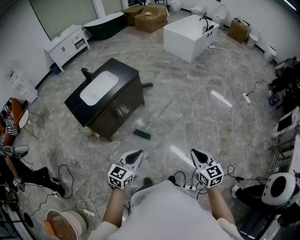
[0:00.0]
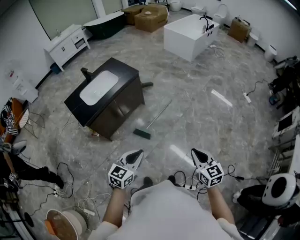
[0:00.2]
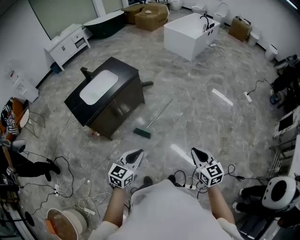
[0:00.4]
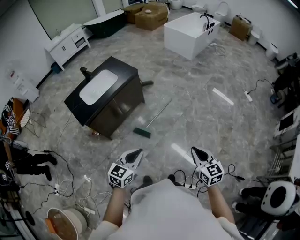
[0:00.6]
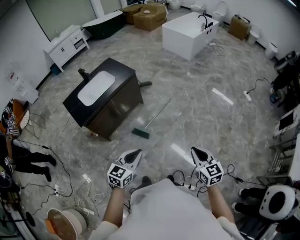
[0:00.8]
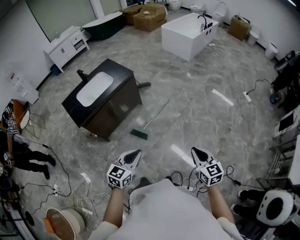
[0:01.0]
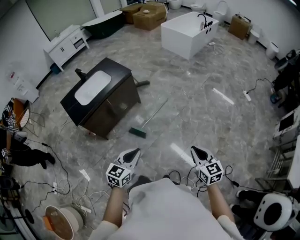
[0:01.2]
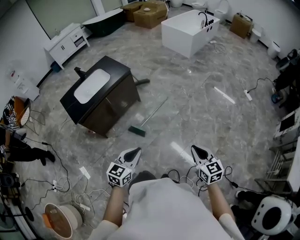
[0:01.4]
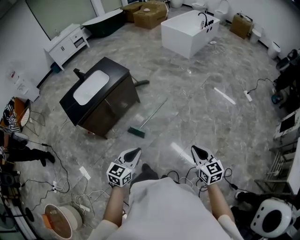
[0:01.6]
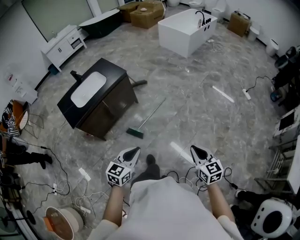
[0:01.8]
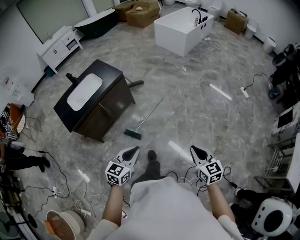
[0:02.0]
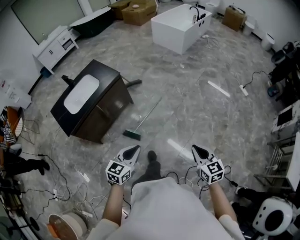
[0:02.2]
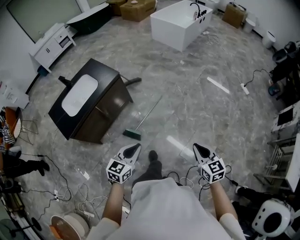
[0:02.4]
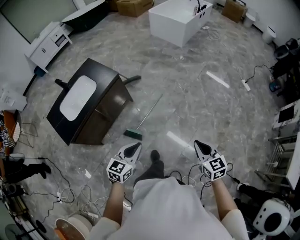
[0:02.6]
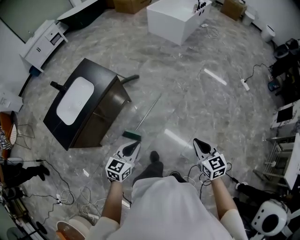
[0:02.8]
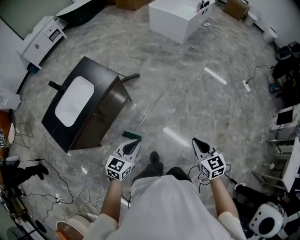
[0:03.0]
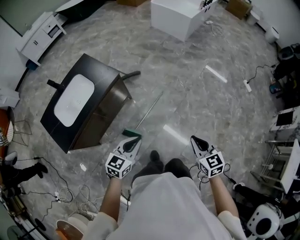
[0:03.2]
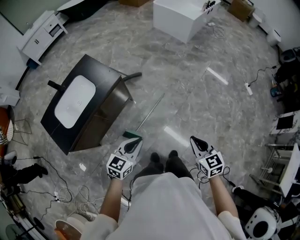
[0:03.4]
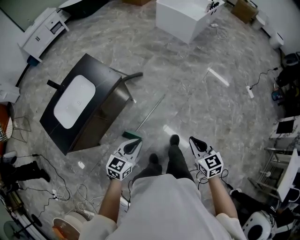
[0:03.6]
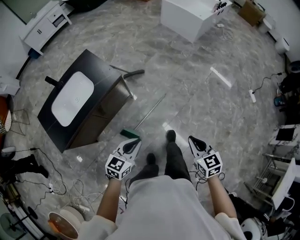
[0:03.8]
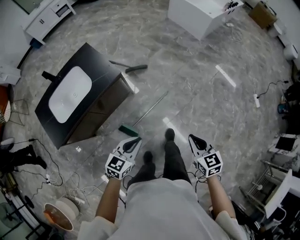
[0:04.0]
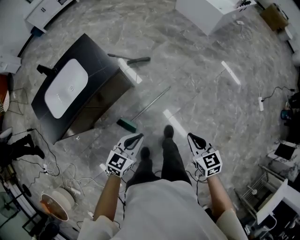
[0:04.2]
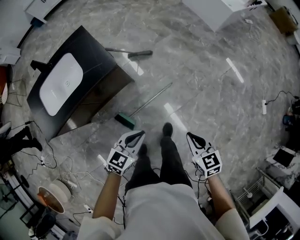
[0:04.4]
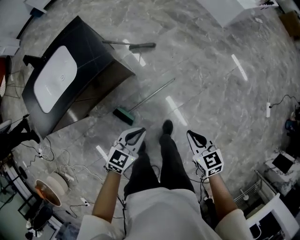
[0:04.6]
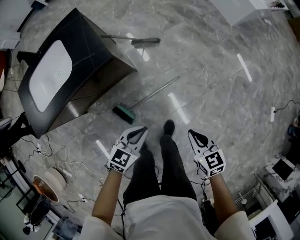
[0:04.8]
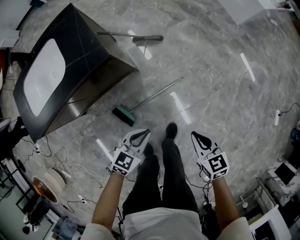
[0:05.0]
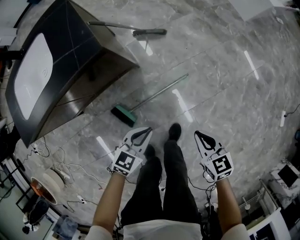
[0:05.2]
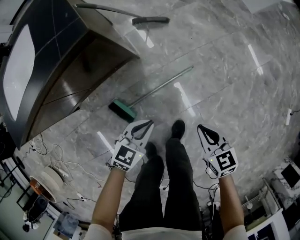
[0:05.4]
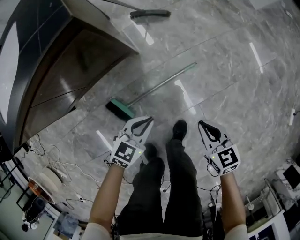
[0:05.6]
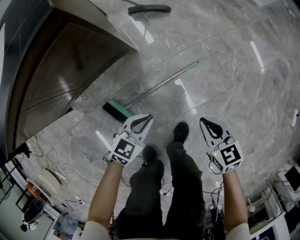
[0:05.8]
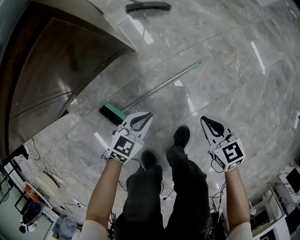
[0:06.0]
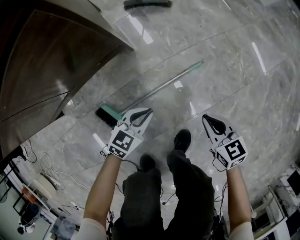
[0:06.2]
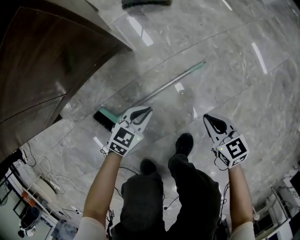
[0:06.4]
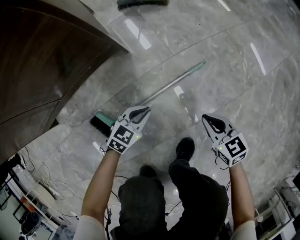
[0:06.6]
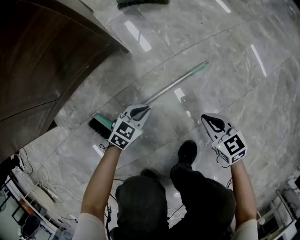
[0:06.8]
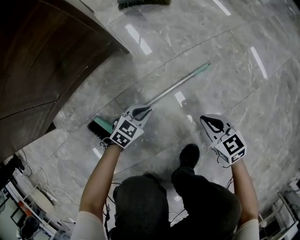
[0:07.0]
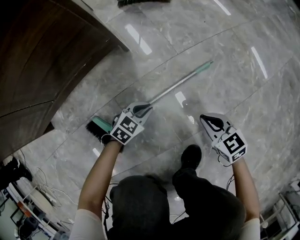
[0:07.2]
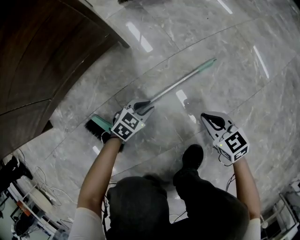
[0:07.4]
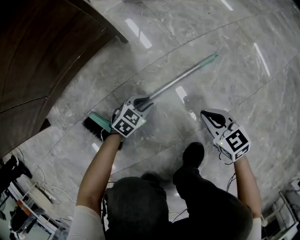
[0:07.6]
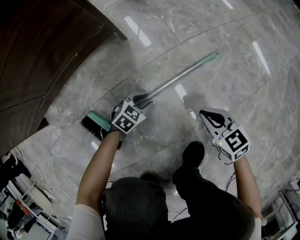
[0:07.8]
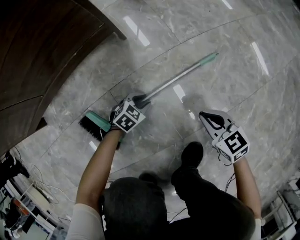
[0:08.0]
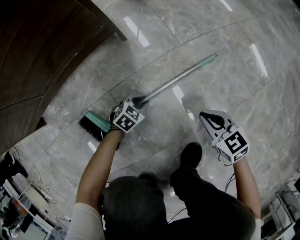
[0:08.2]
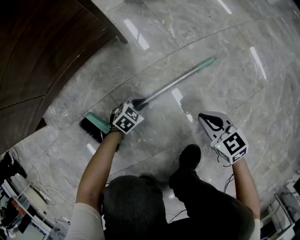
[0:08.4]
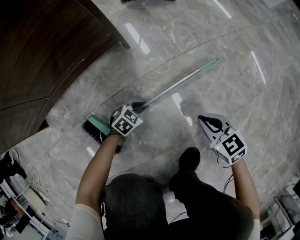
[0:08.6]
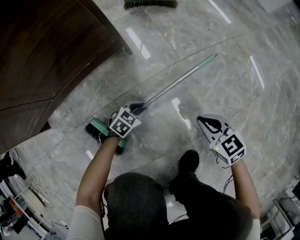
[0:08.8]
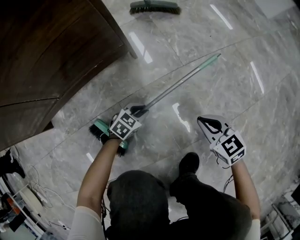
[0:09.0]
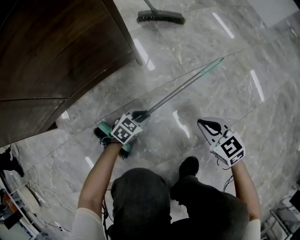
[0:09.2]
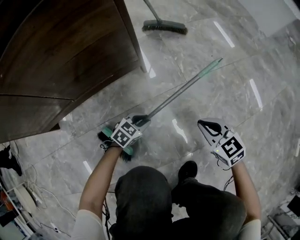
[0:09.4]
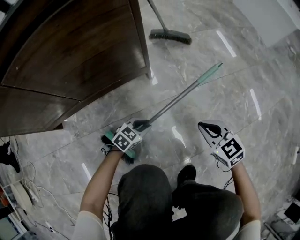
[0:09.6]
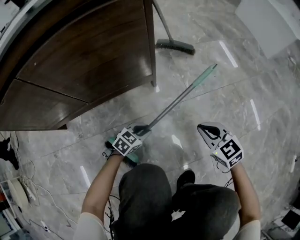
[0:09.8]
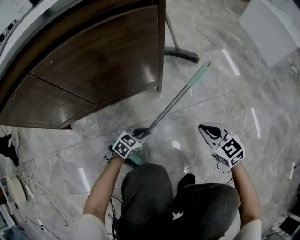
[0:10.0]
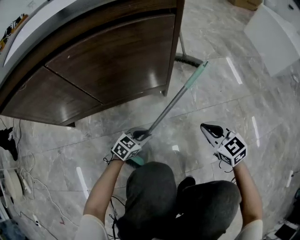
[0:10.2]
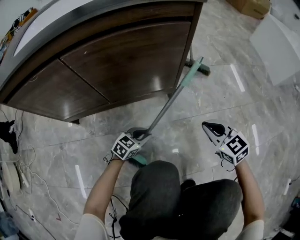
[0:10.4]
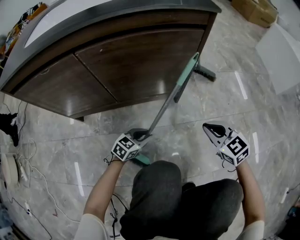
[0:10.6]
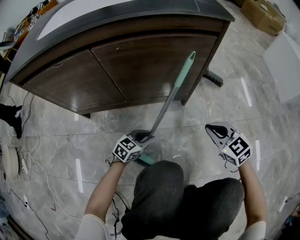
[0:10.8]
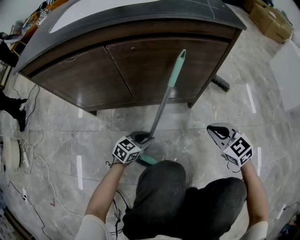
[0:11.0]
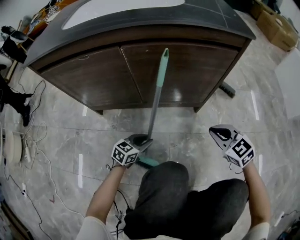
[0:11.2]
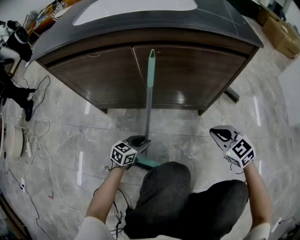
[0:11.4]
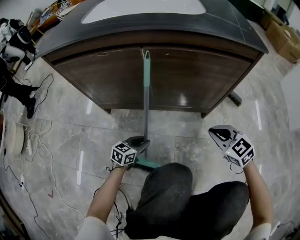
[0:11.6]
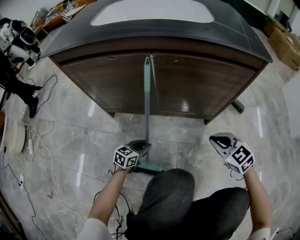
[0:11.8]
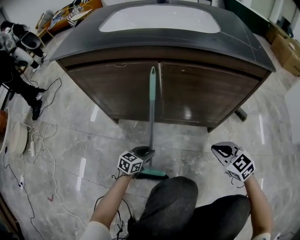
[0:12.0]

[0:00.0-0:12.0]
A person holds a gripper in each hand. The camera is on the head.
0:00.0 to 0:01.6: Both grippers move to the right, some 15 cm.
0:01.6 to 0:03.0: Both grippers travel together forward, some 35 cm.
0:03.0 to 0:04.4: Both grippers travel together forward and downward, about 35 cm. The right gripper rotates some 20 degrees.
0:04.4 to 0:06.0: The two grippers go roughly 60 cm downward.
0:06.0 to 0:07.6: Both grippers travel together downward, some 30 cm.
0:07.6 to 0:09.0: The left gripper moves approximately 5 cm. Meanwhile the right gripper moves upward, roughly 5 cm.
0:09.0 to 0:10.4: Both grippers move upward and to the left, roughly 25 cm. The right gripper changes its angle by roughly 20 degrees; the left gripper changes its angle by about 20 degrees.
0:10.4 to 0:12.0: Both grippers move to the left, about 20 cm. The right gripper swivels some 20 degrees. Meanwhile the left gripper swivels about 30 degrees.

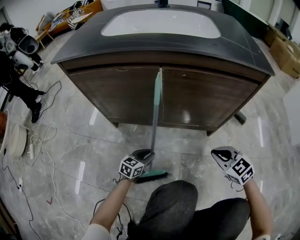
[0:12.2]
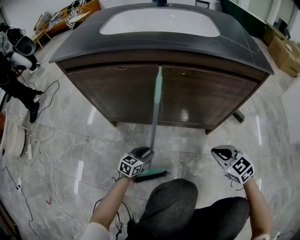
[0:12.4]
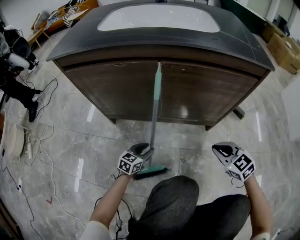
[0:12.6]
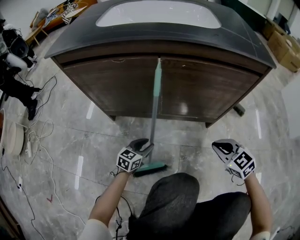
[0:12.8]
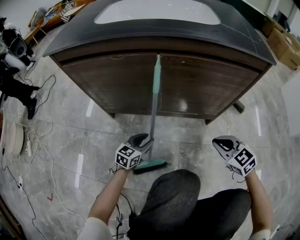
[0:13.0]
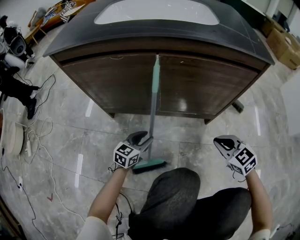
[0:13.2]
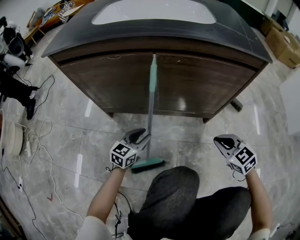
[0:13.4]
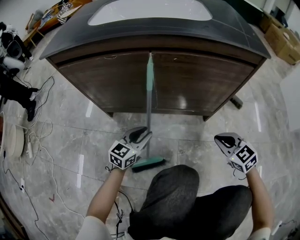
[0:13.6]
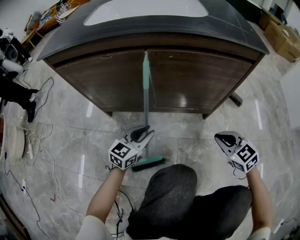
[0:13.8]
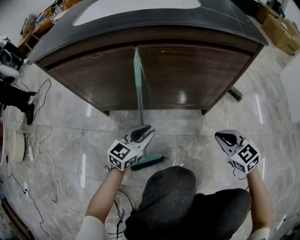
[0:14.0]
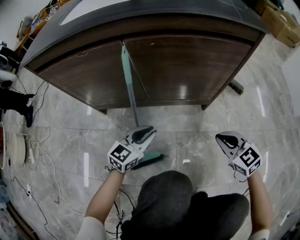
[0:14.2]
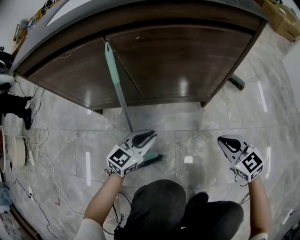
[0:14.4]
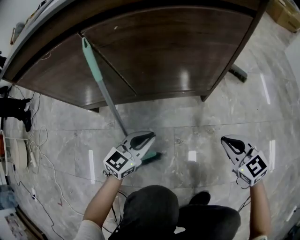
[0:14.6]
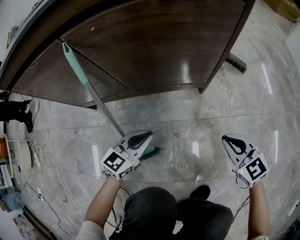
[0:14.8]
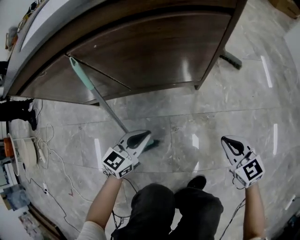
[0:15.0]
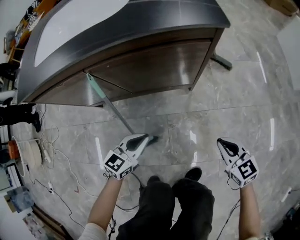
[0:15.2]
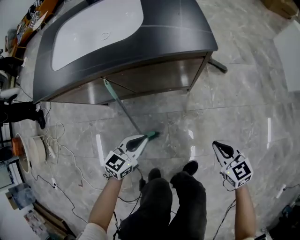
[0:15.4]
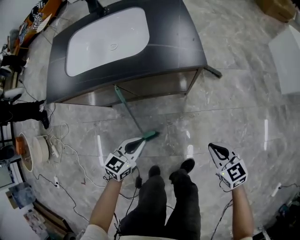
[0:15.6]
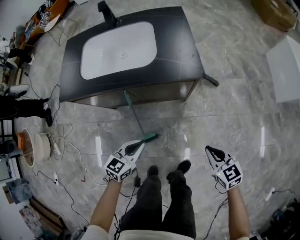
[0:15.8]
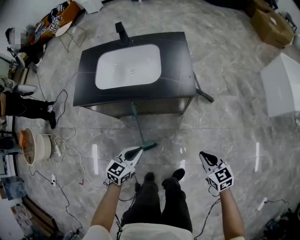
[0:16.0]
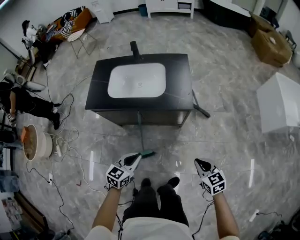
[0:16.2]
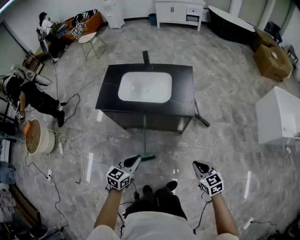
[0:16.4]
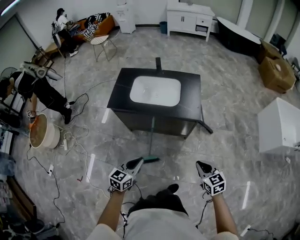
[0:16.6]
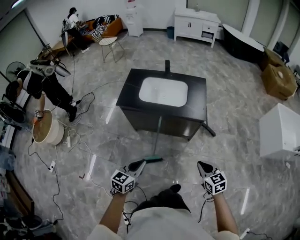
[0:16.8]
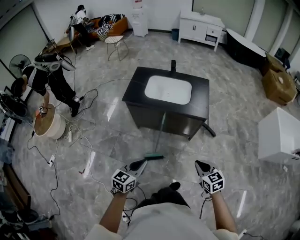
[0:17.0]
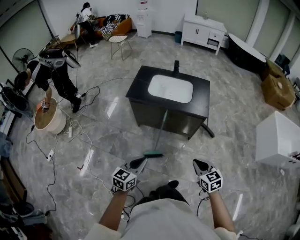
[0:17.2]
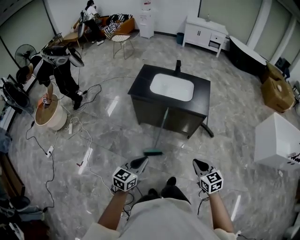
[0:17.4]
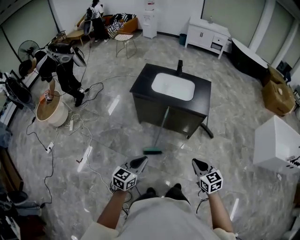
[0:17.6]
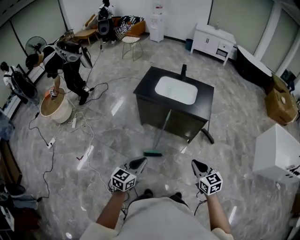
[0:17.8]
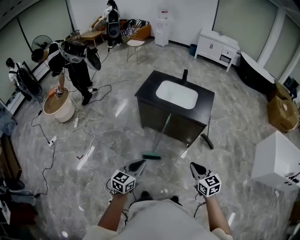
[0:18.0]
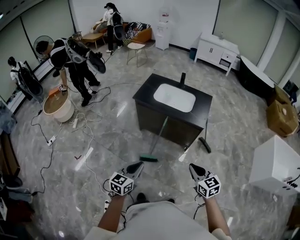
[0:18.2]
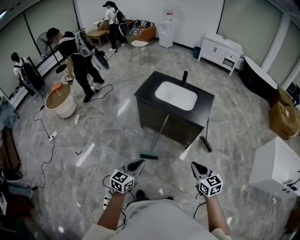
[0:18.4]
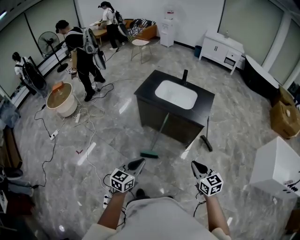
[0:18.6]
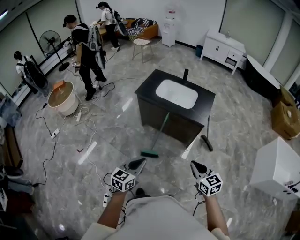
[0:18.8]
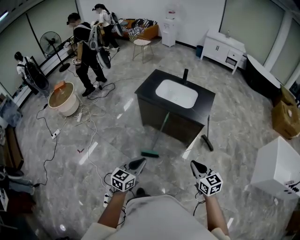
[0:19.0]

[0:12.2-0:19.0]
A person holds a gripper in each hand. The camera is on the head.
0:12.2 to 0:13.6: The left gripper is displaced upward by approximately 15 cm.
0:13.6 to 0:15.0: The grippers both shift to the right by roughly 15 cm. The right gripper changes its angle by approximately 20 degrees, while the left gripper closes its fingers.
0:15.0 to 0:16.2: The two grippers go some 60 cm upward.
0:16.2 to 0:17.6: Both grippers move backward, upward and to the left, roughly 40 cm.
0:17.6 to 0:19.0: Both grippers move to the right, some 10 cm.

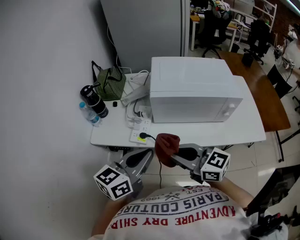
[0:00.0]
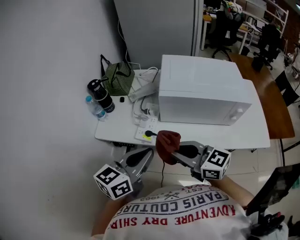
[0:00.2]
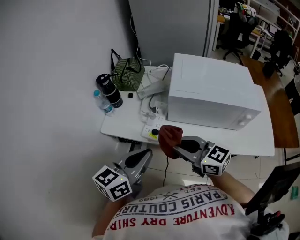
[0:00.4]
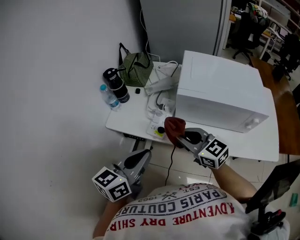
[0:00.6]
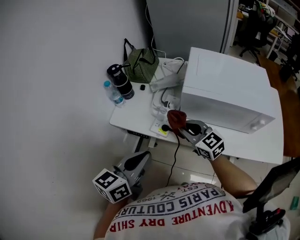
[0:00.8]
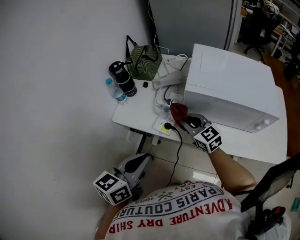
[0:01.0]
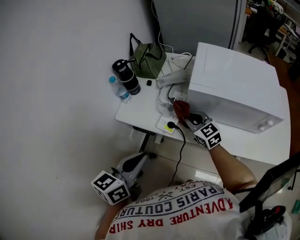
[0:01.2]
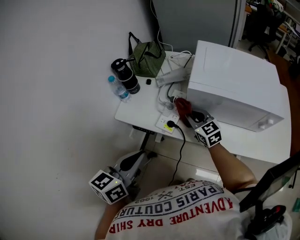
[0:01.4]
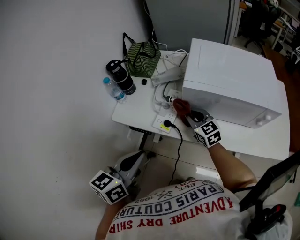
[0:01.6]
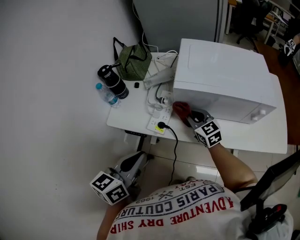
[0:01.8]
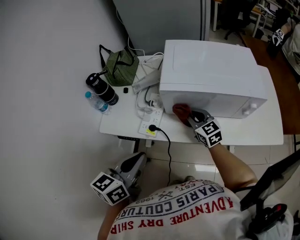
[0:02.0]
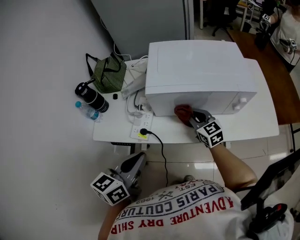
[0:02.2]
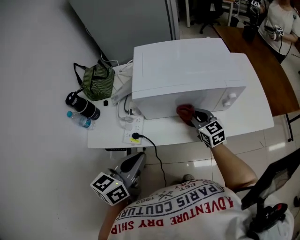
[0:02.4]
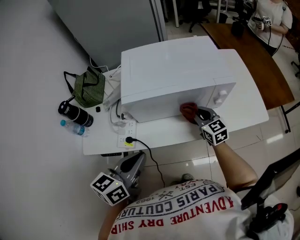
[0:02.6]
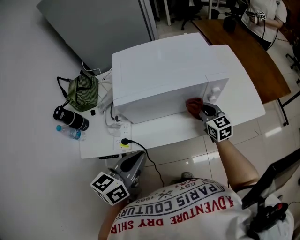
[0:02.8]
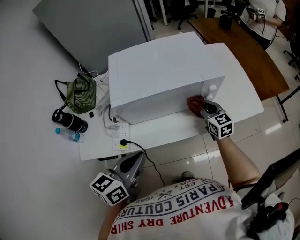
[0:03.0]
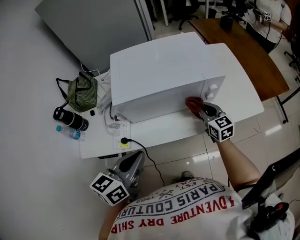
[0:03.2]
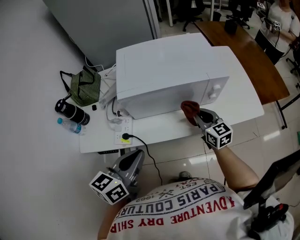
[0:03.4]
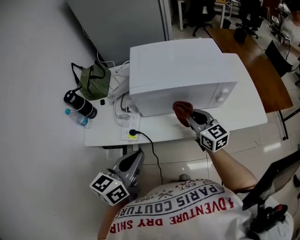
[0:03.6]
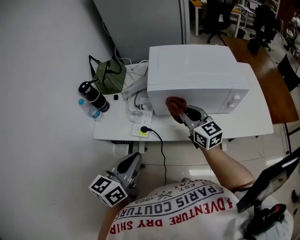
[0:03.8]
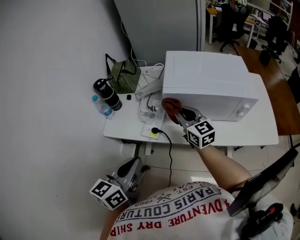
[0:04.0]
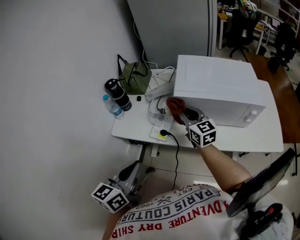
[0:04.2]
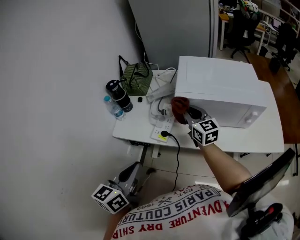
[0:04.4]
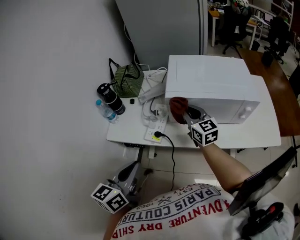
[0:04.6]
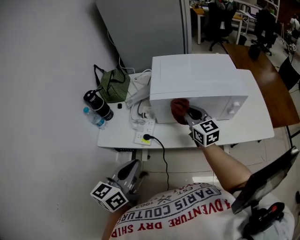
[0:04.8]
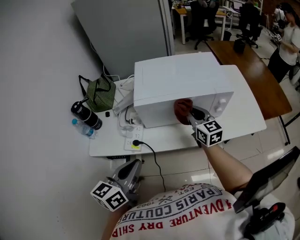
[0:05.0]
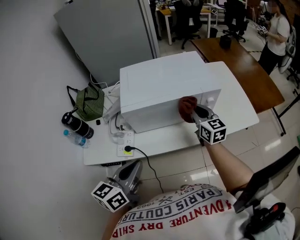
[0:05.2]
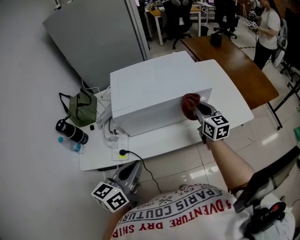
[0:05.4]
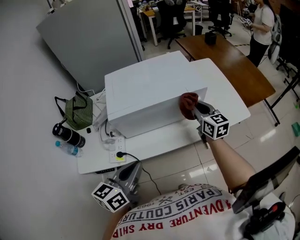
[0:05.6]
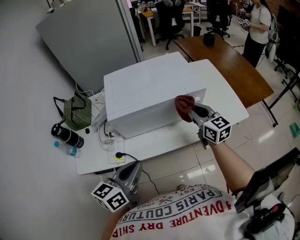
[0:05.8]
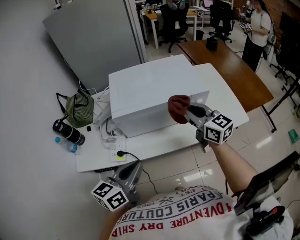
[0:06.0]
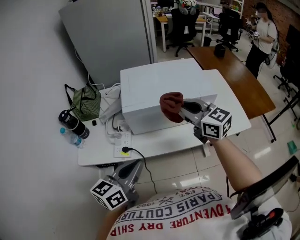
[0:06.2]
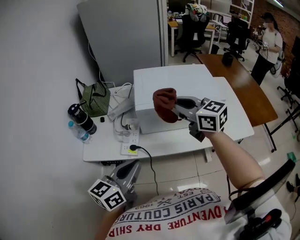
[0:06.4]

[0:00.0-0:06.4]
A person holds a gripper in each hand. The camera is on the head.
0:00.0 to 0:01.6: The right gripper goes roughly 25 cm forward and downward, and rotates some 20 degrees. The left gripper goes roughly 10 cm to the left, and rotates about 20 degrees.
0:01.6 to 0:03.2: The left gripper changes place by approximately 15 cm, and rotates approximately 30 degrees, while the right gripper shifts by some 30 cm, and rotates approximately 40 degrees.
0:03.2 to 0:04.8: The right gripper moves some 20 cm.
0:04.8 to 0:06.4: The left gripper travels to the right and back again, approximately 10 cm each way, while the right gripper shifts roughly 15 cm upward, and goes to the right and returns, approximately 25 cm each way.
